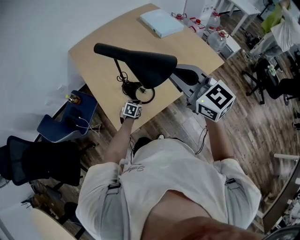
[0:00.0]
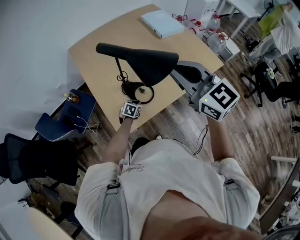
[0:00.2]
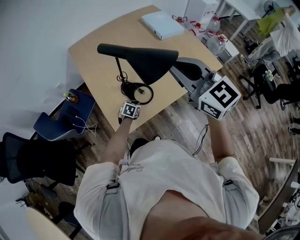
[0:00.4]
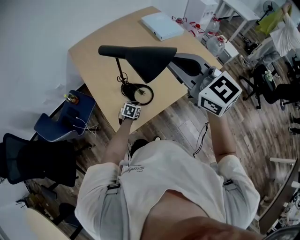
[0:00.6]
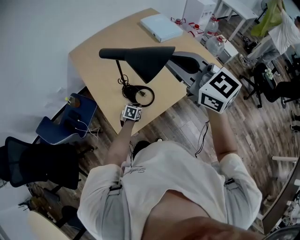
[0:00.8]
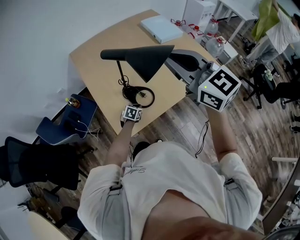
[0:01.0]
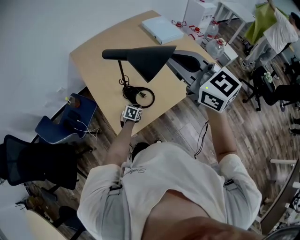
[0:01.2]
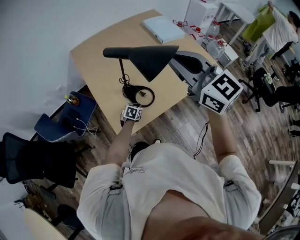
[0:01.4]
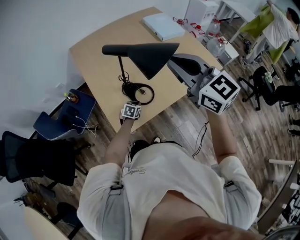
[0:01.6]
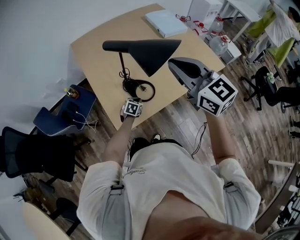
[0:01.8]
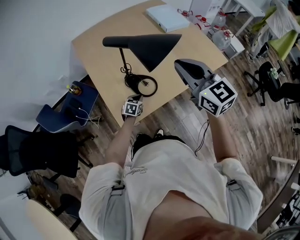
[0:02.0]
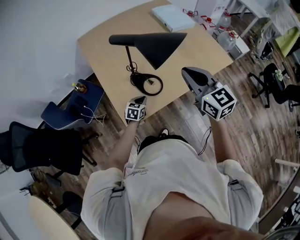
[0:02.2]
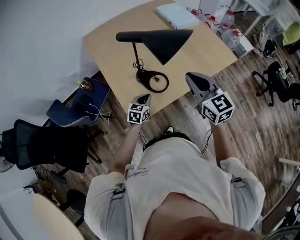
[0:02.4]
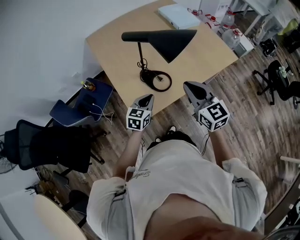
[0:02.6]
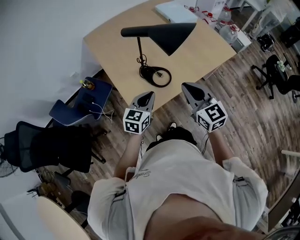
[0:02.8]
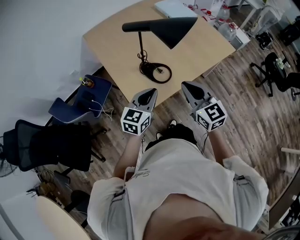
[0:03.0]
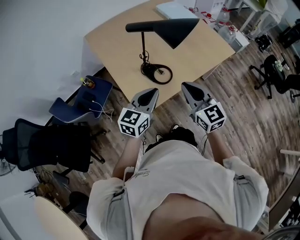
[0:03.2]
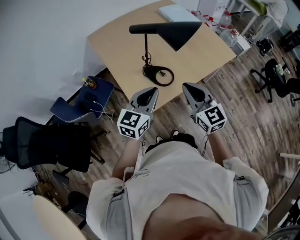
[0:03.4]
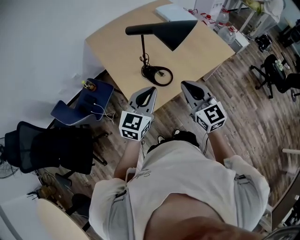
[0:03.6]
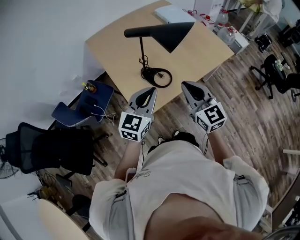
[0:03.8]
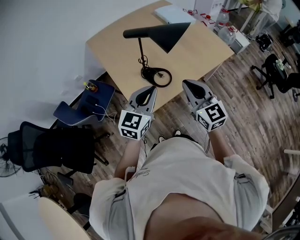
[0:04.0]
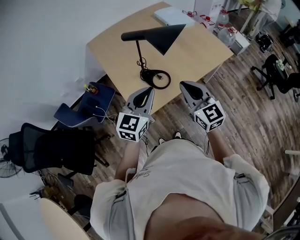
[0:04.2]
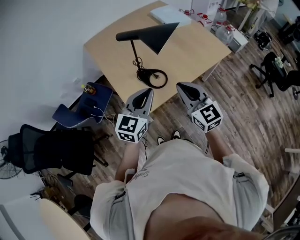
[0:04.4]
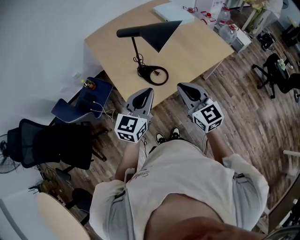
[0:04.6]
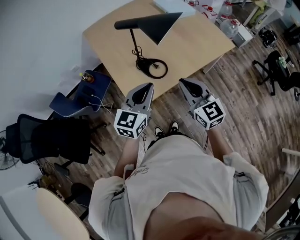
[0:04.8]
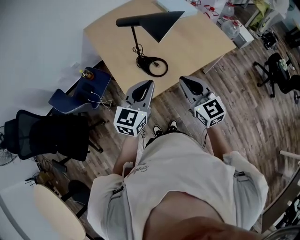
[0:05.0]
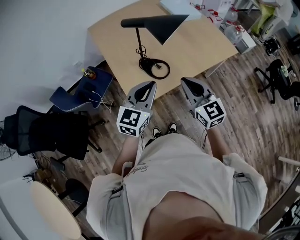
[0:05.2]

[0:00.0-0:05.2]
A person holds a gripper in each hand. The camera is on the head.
0:01.8 to 0:03.4: The left gripper shifts about 40 cm upward and backward, and points its fingers some 40 degrees further upward. Meanwhile the right gripper travels backward and downward by approximately 15 cm.
0:03.4 to 0:05.2: The left gripper shifts by about 5 cm.

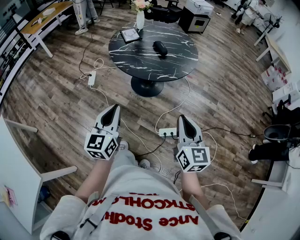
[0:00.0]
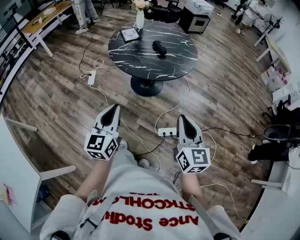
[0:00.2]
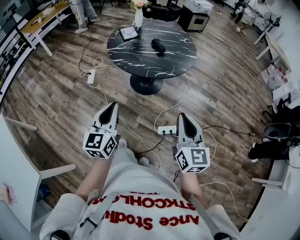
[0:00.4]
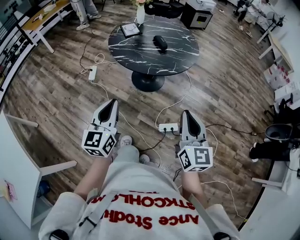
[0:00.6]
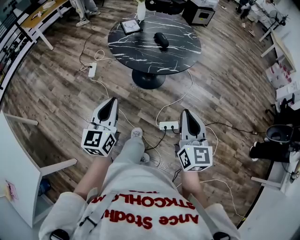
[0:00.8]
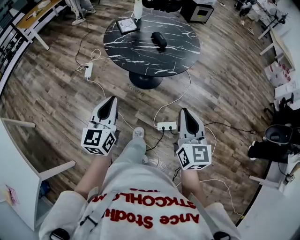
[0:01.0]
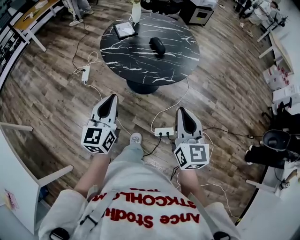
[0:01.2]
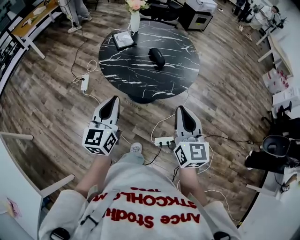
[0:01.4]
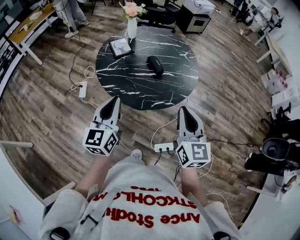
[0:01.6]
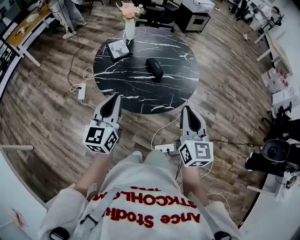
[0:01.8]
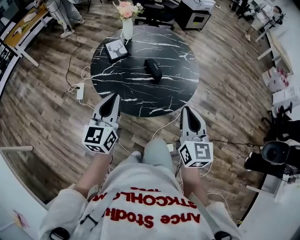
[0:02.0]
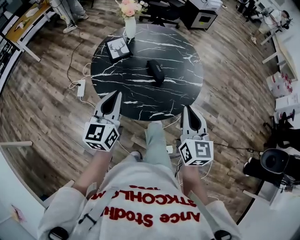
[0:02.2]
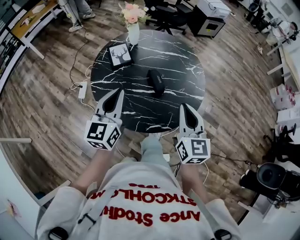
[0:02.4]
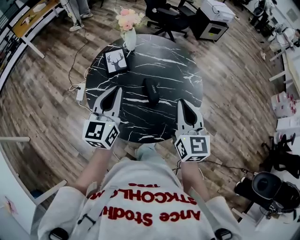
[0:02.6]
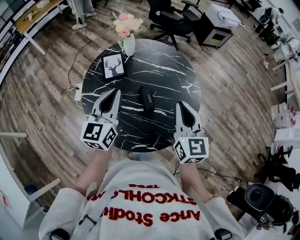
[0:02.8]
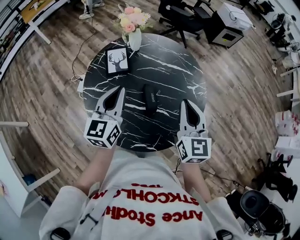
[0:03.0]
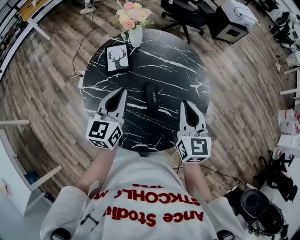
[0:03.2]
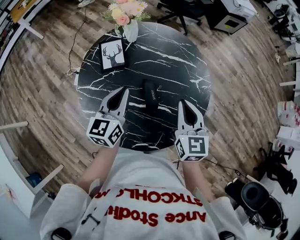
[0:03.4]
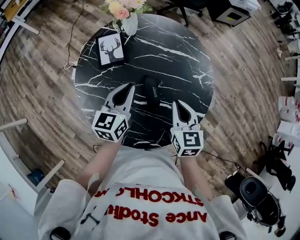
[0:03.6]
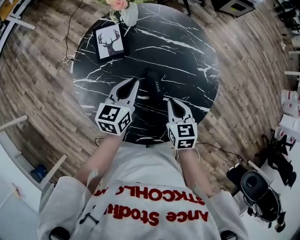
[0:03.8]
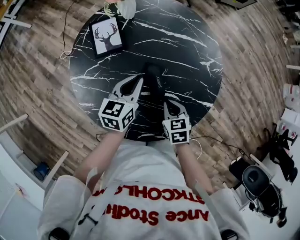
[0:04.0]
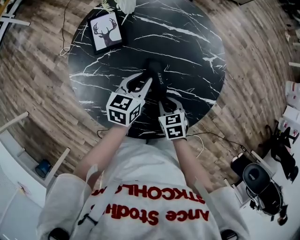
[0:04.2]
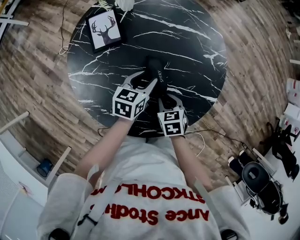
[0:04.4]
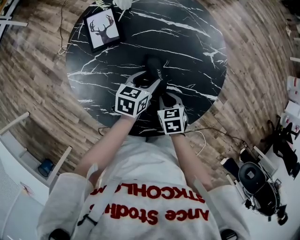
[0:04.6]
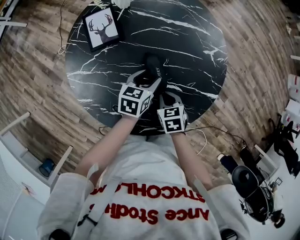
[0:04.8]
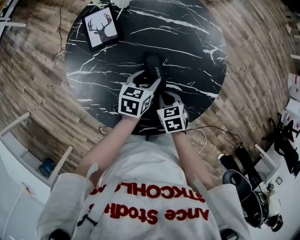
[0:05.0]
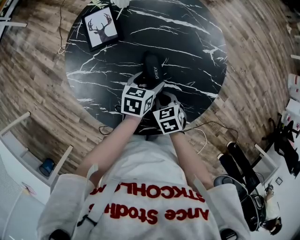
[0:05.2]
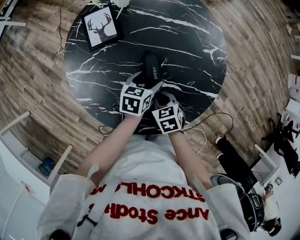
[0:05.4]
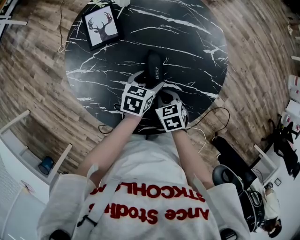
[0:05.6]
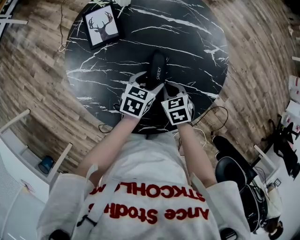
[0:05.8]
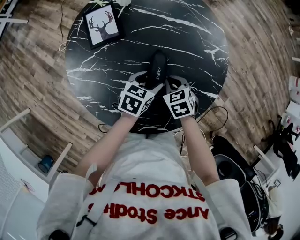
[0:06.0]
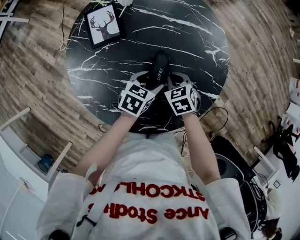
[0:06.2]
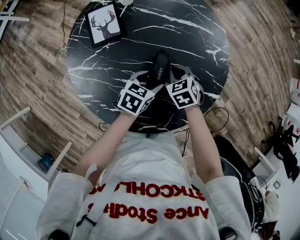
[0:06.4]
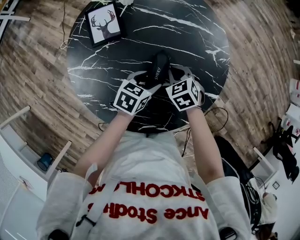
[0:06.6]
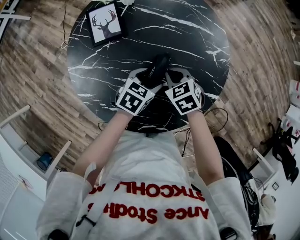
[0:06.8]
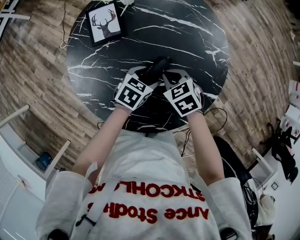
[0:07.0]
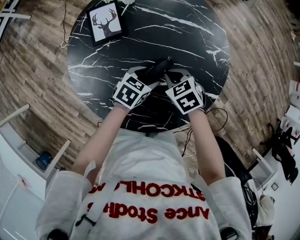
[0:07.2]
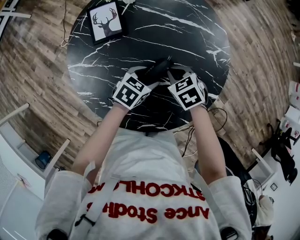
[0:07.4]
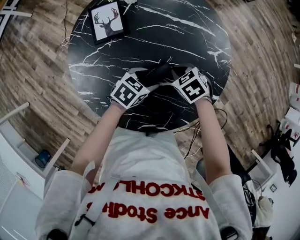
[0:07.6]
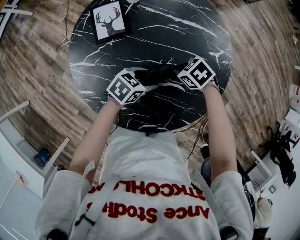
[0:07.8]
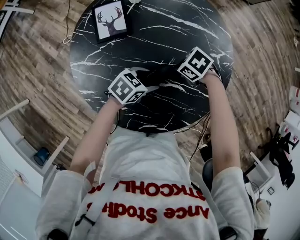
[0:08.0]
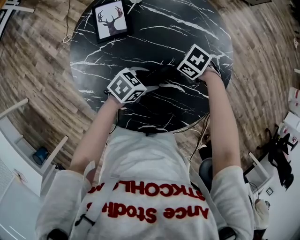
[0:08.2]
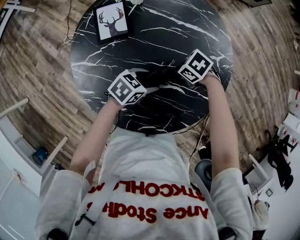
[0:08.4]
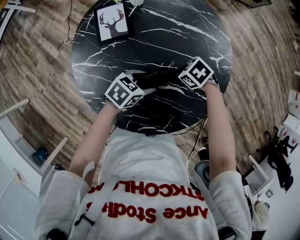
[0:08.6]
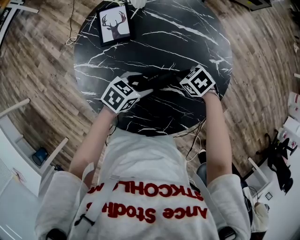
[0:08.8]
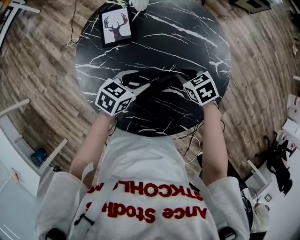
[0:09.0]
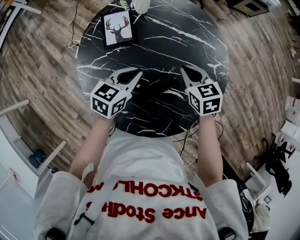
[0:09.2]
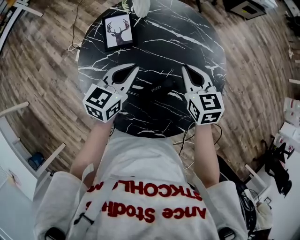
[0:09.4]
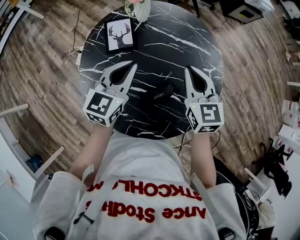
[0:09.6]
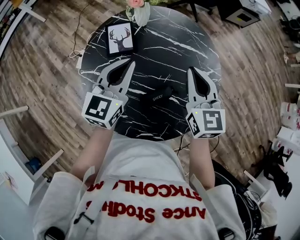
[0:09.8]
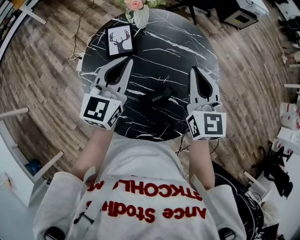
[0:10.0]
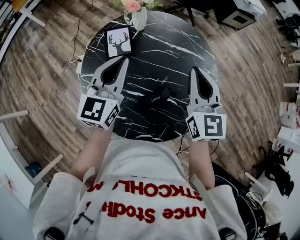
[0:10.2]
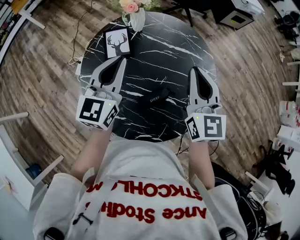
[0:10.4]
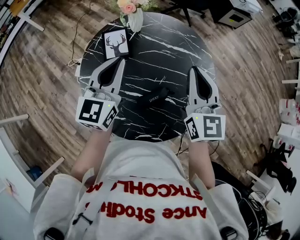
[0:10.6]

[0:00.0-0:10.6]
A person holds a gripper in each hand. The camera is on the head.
0:00.0 to 0:01.6: Both grippers move forward, about 25 cm.
0:01.6 to 0:03.0: The grippers both shift forward by roughly 35 cm.
0:03.0 to 0:04.6: The two grippers go about 30 cm downward. The left gripper points its fingers about 30 degrees further downward, and opens its fingers. The right gripper points its fingers about 50 degrees further downward.
0:04.6 to 0:06.0: The right gripper heads forward, covering some 5 cm.
0:07.6 to 0:09.0: The left gripper shifts by about 10 cm.
0:09.0 to 0:10.6: The grippers both shift upward by about 25 cm. The right gripper angles its fingers upward, by about 60 degrees. The left gripper tilts its fingers about 40 degrees upward, and closes up.

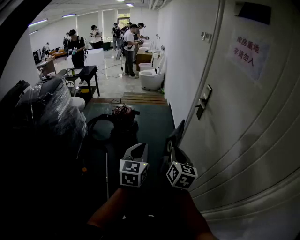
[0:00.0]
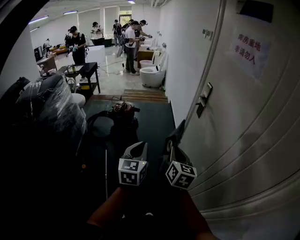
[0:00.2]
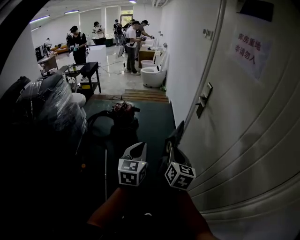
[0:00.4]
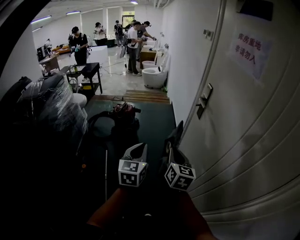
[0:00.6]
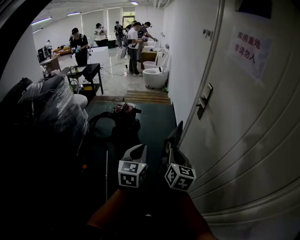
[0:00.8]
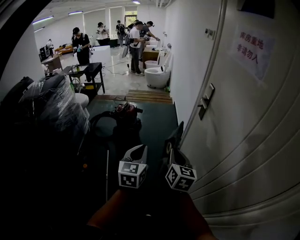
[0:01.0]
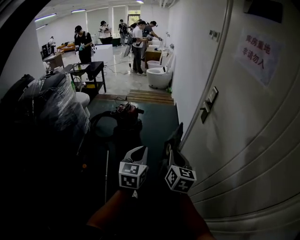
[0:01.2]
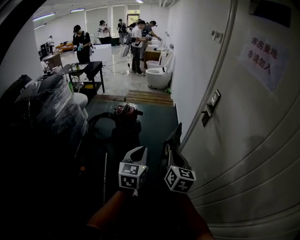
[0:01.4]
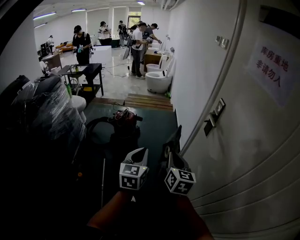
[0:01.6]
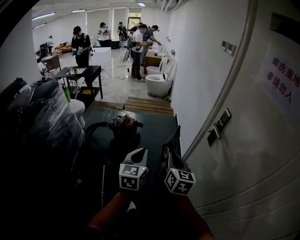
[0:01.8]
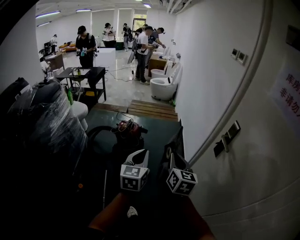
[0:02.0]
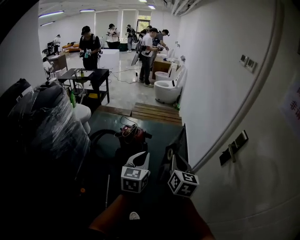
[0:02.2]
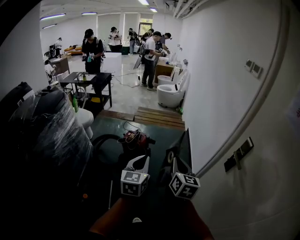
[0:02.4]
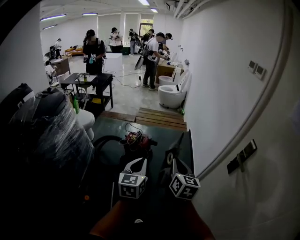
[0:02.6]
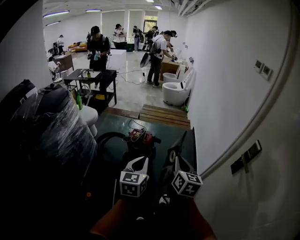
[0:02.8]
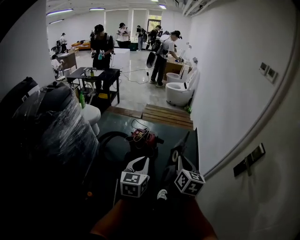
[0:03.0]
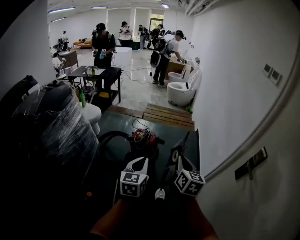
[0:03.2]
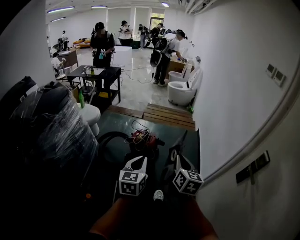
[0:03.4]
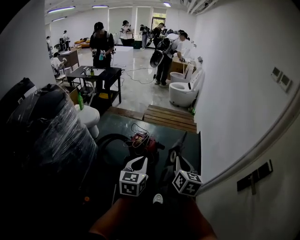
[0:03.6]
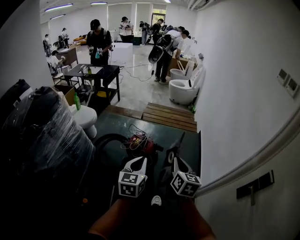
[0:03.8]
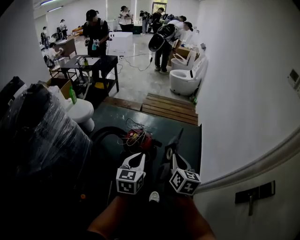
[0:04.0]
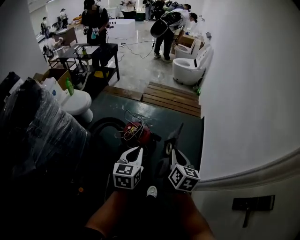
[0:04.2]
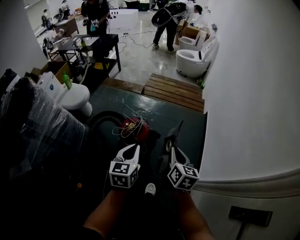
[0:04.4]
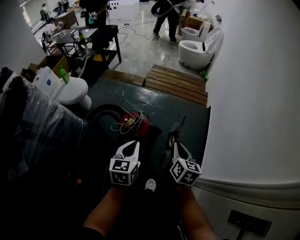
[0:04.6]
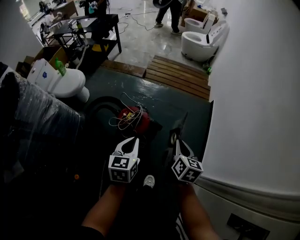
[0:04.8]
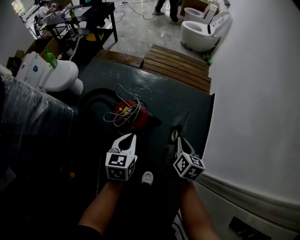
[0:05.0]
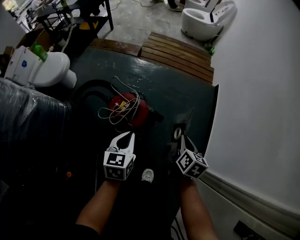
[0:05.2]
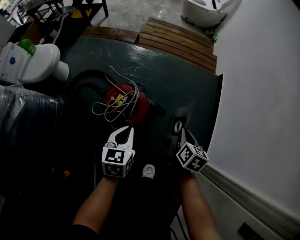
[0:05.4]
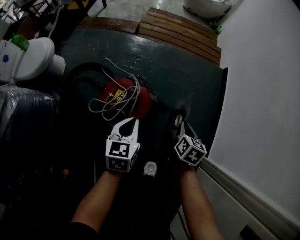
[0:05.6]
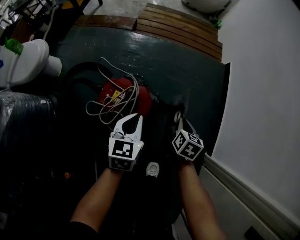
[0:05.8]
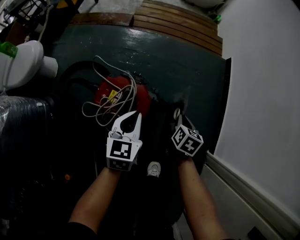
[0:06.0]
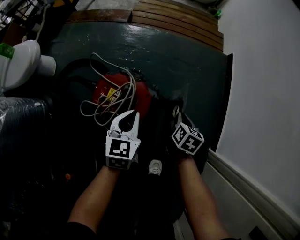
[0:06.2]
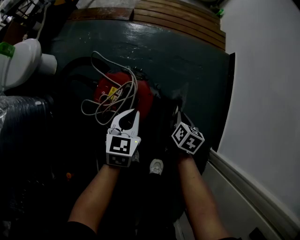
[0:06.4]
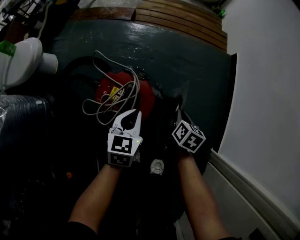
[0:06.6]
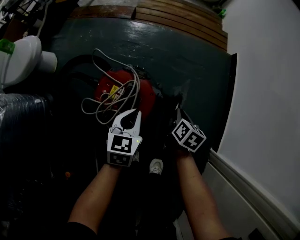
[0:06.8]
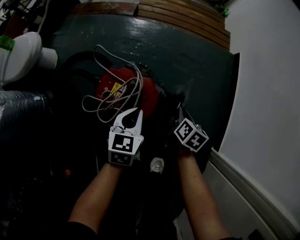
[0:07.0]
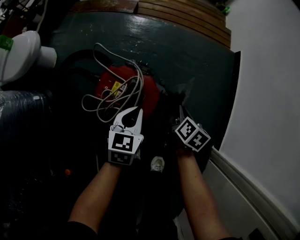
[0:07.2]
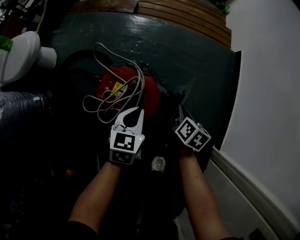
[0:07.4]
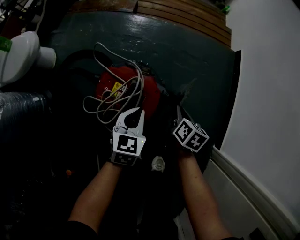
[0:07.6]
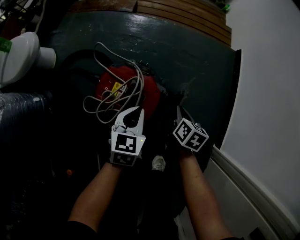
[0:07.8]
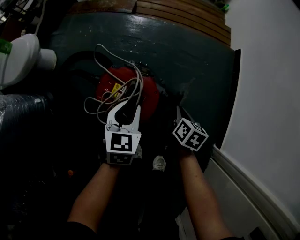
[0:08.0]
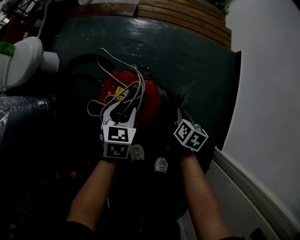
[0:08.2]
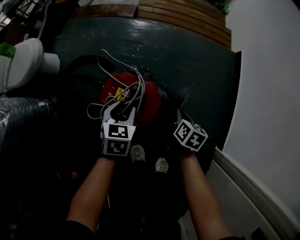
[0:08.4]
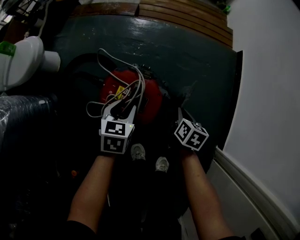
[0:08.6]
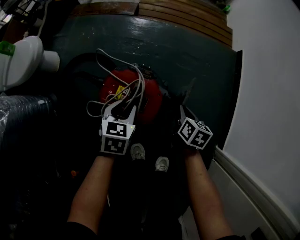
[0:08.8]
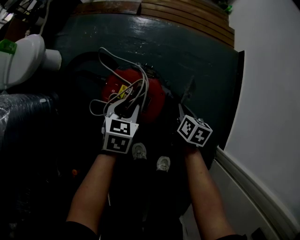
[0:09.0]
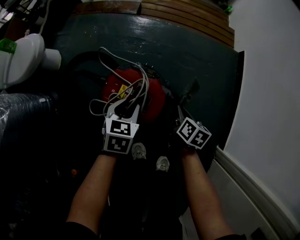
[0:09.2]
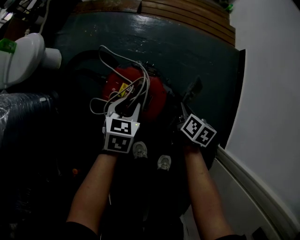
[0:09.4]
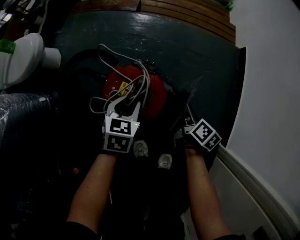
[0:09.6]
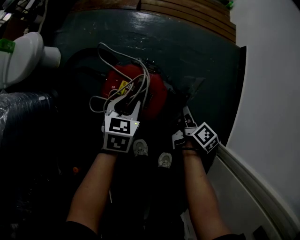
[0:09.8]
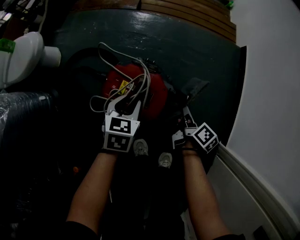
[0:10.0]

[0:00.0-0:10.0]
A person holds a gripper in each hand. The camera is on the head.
0:00.0 to 0:01.4: The two grippers go some 10 cm forward.
0:01.4 to 0:02.8: The grippers both shift forward and to the left by some 35 cm.
0:02.8 to 0:04.2: The grippers both shift forward by about 30 cm.
0:04.2 to 0:05.8: The grippers both shift downward and forward by about 50 cm. The right gripper changes its angle by about 30 degrees.
0:05.8 to 0:07.2: The two grippers go about 10 cm downward.
0:07.2 to 0:08.6: The left gripper is displaced to the left by roughly 5 cm, and opens.
0:08.6 to 0:10.0: The right gripper rotates approximately 40 degrees.
